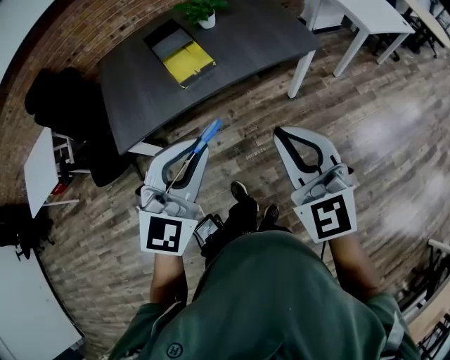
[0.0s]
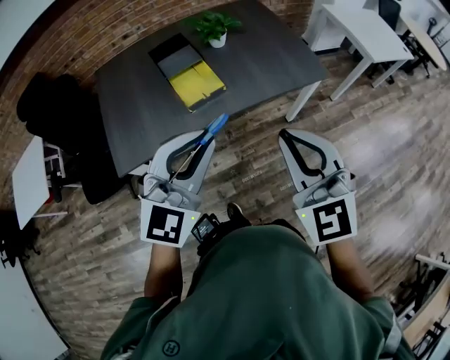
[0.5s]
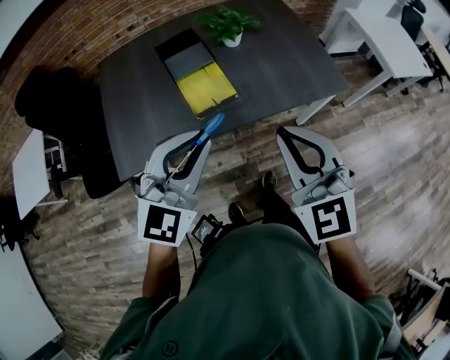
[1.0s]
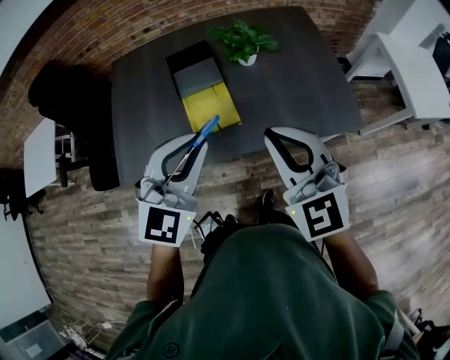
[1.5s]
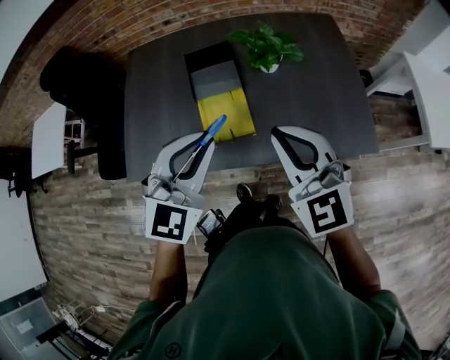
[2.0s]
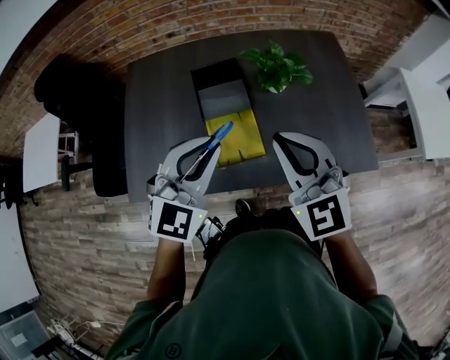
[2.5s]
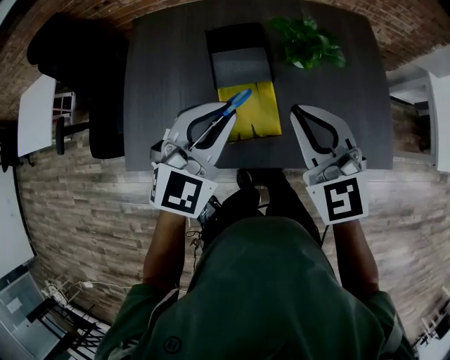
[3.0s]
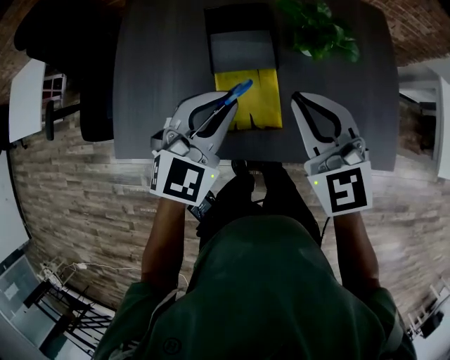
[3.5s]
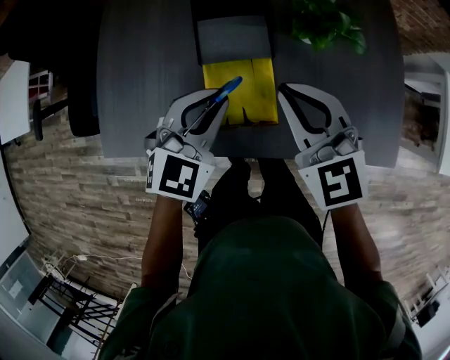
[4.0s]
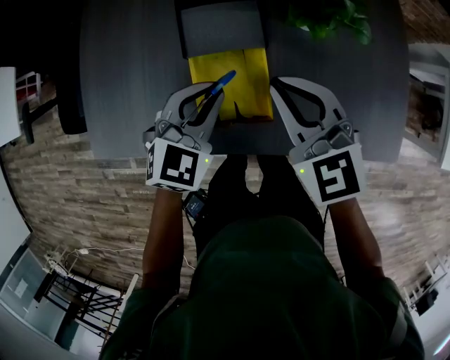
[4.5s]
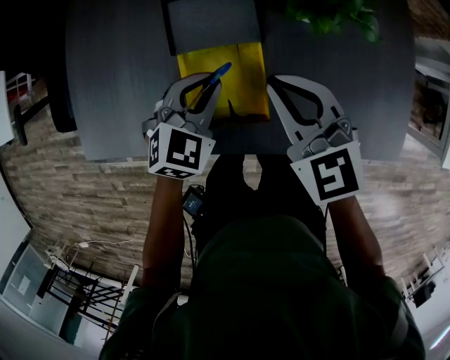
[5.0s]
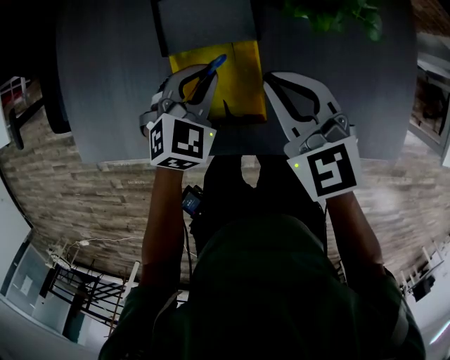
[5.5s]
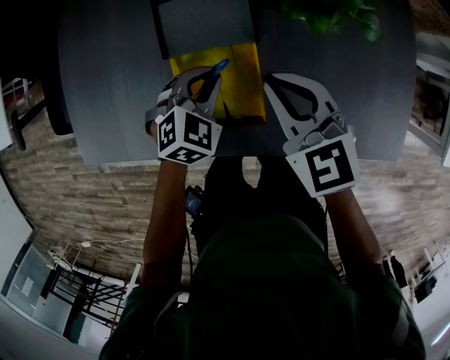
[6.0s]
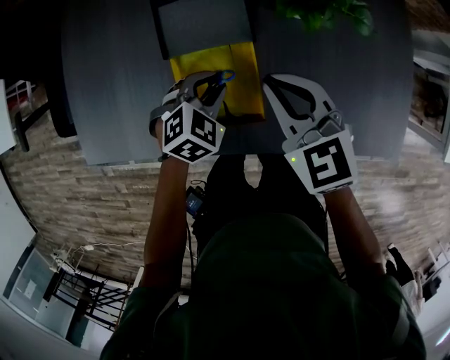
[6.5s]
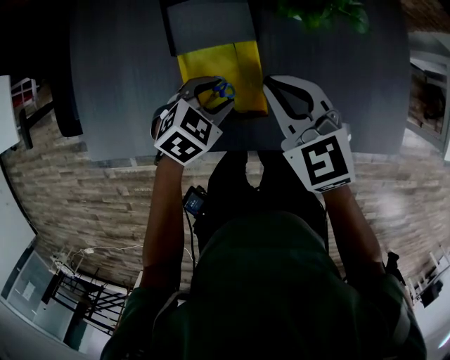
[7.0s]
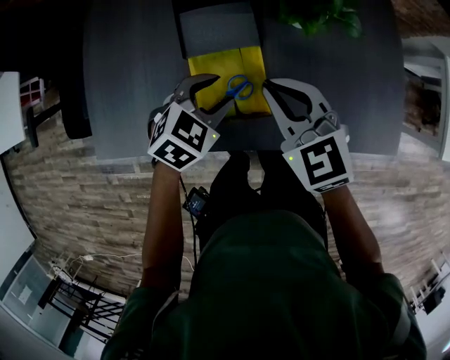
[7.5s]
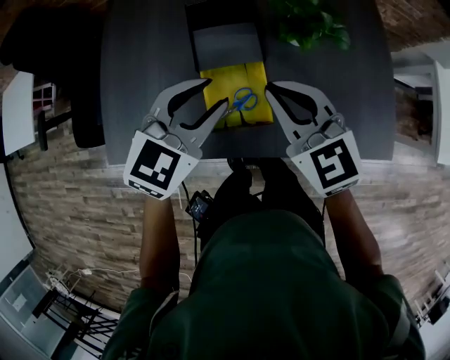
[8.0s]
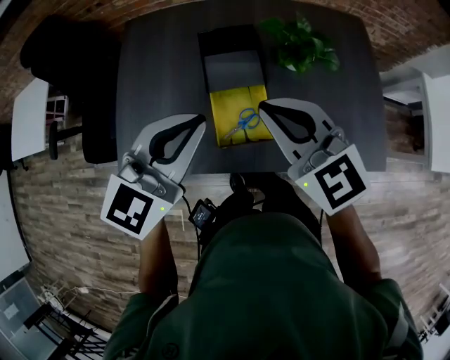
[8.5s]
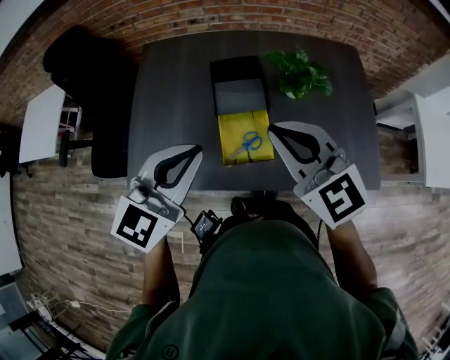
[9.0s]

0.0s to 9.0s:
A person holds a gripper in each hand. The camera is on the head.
0.0s to 2.0s: The grippers both shift forward by approximately 35 cm. The left gripper rotates some 20 degrees. Meanwhile the right gripper changes its angle by about 20 degrees.
2.0s to 4.5s: The right gripper goes approximately 25 cm forward and downward; the left gripper is displaced downward and forward by roughly 25 cm, and swivels roughly 20 degrees.
4.5s to 7.0s: The left gripper travels downward by about 10 cm, changes its angle by roughly 30 degrees, and opens; the right gripper moves roughly 5 cm.
7.0s to 9.0s: The grippers both shift upward by some 30 cm. The left gripper tips its fingers upward by about 40 degrees, and closes, while the right gripper turns by some 20 degrees.

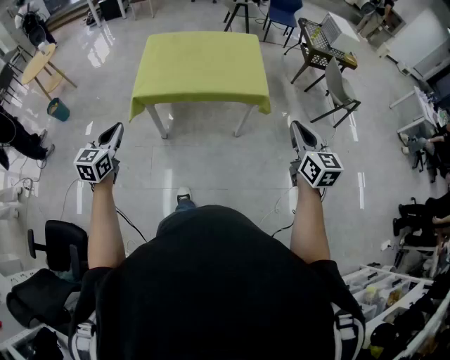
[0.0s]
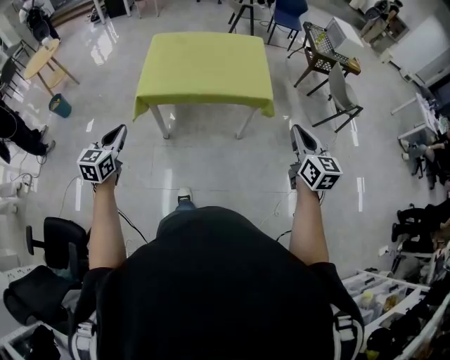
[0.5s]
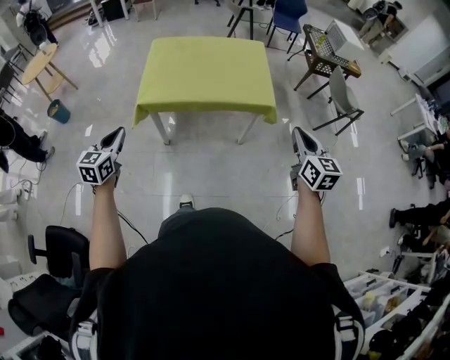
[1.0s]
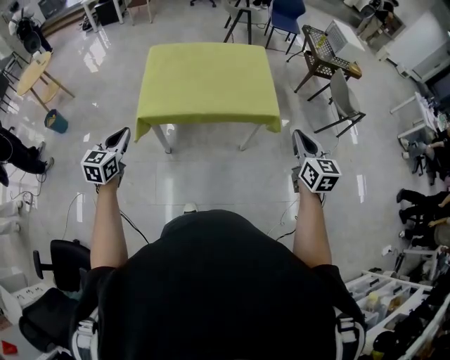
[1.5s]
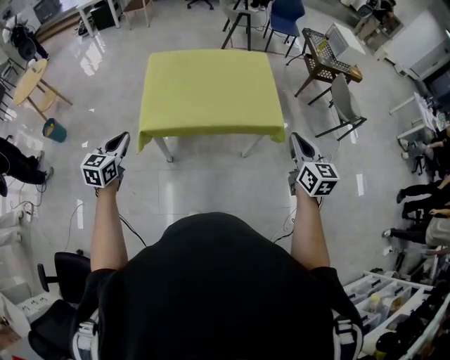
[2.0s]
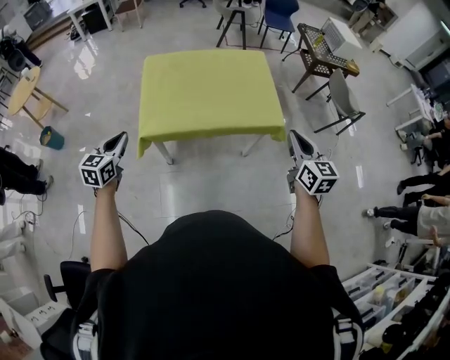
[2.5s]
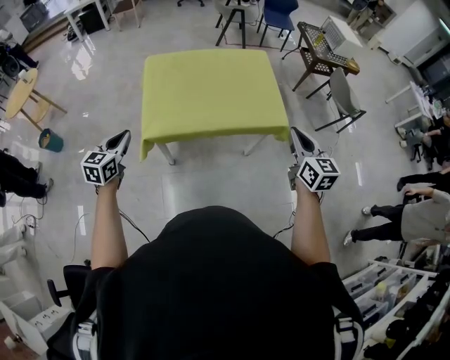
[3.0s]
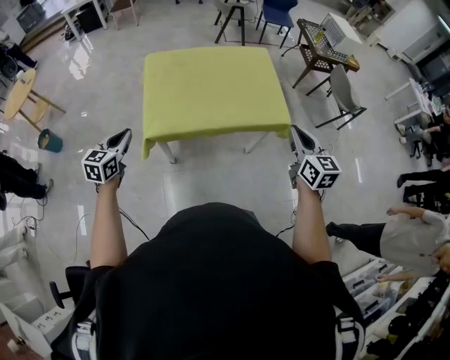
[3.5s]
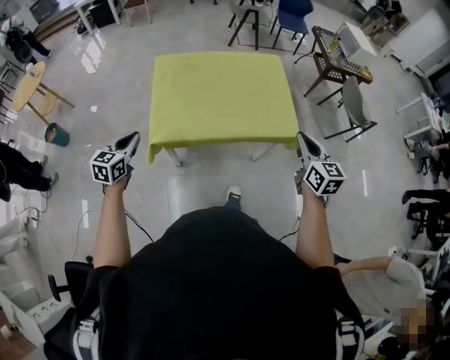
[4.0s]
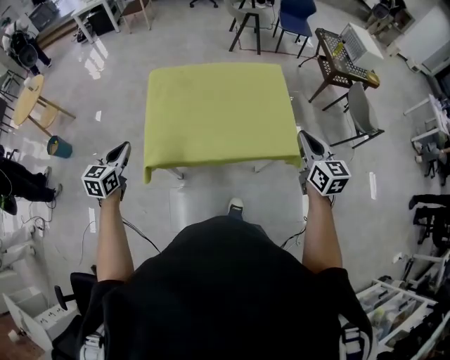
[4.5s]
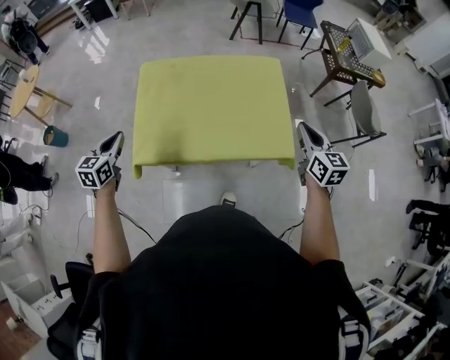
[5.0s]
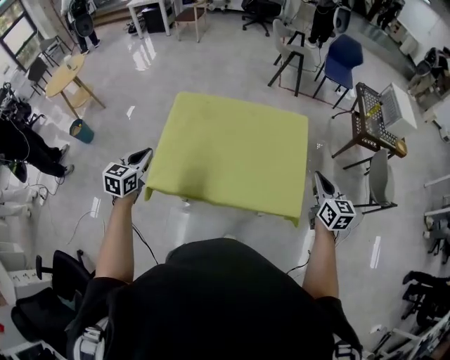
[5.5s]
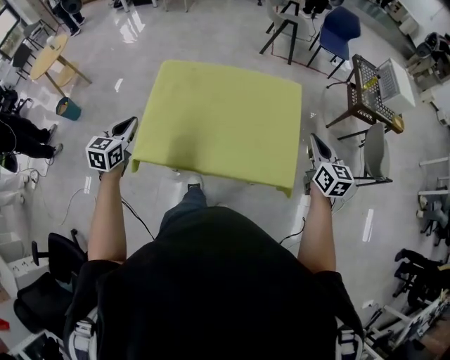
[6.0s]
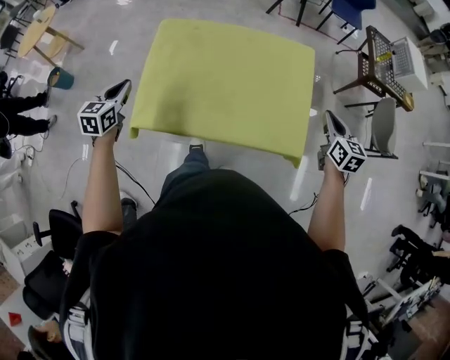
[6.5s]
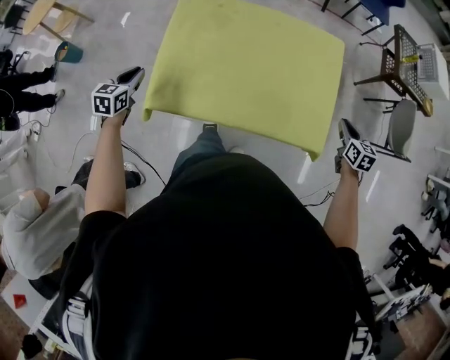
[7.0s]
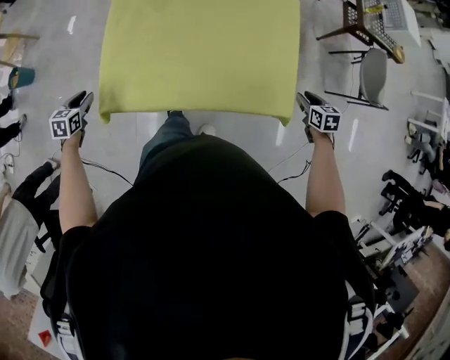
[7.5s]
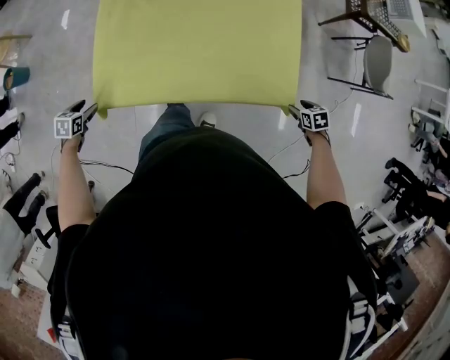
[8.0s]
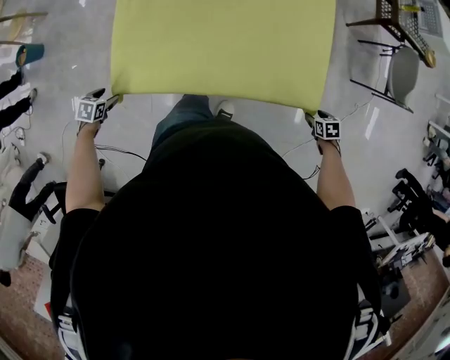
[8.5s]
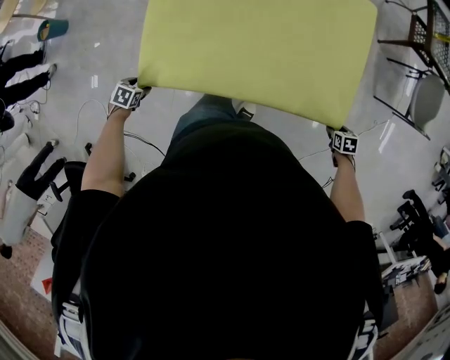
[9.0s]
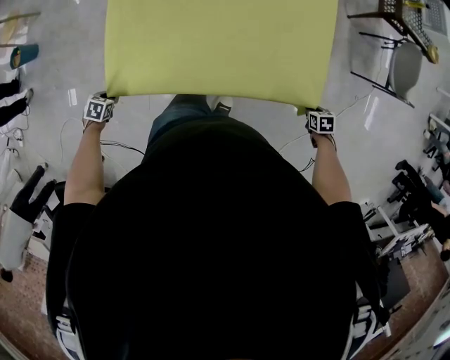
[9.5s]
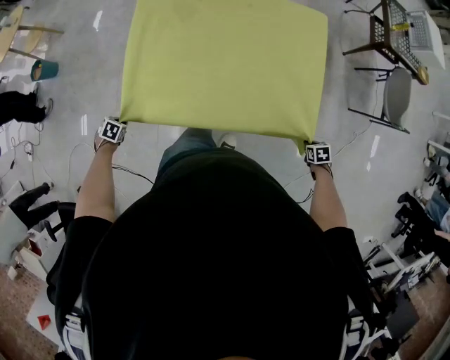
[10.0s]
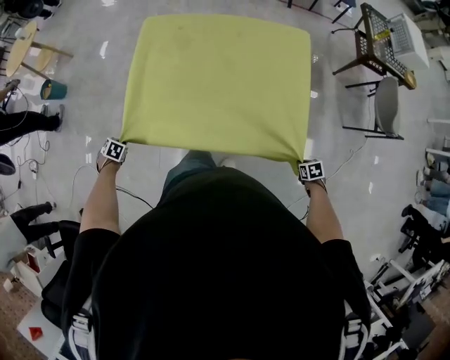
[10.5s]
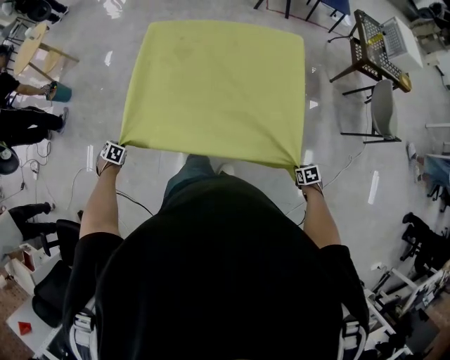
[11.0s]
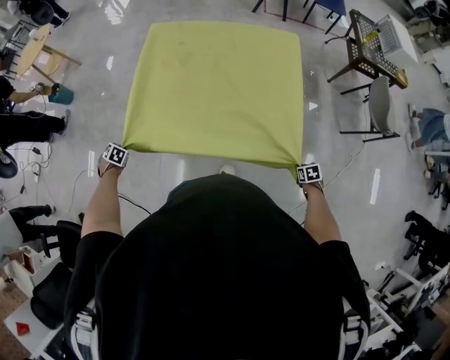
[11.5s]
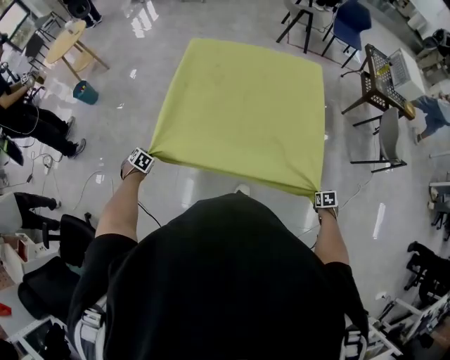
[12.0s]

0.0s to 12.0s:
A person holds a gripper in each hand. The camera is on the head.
0.0s to 2.0s: Both grippers move forward and to the left, some 25 cm.
2.0s to 4.0s: The two grippers go some 15 cm forward and to the left.
4.0s to 6.0s: The grippers both shift forward and to the right by about 30 cm.
6.0s to 8.0s: The two grippers go roughly 35 cm downward. The left gripper tilts its fingers about 40 degrees downward, and opens. The right gripper tips its fingers downward by roughly 60 degrees, and opens its fingers.
8.0s to 10.0s: The grippers both shift downward by some 5 cm. The right gripper closes, while the left gripper turns by about 20 degrees, and closes.
10.0s to 12.0s: The right gripper changes place by some 25 cm, while the left gripper ends up some 25 cm from where it was.

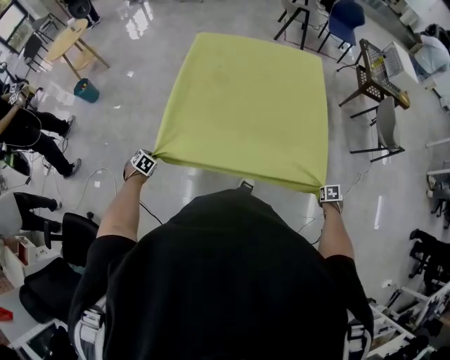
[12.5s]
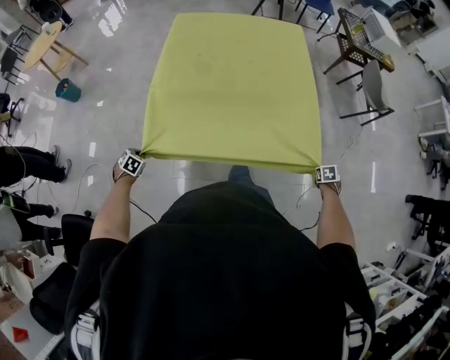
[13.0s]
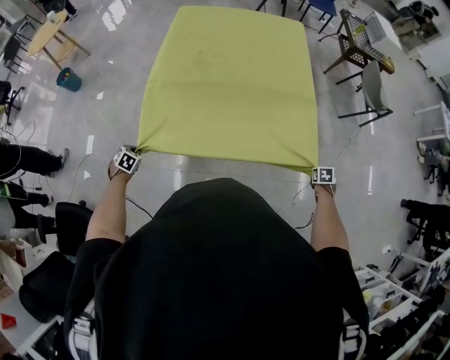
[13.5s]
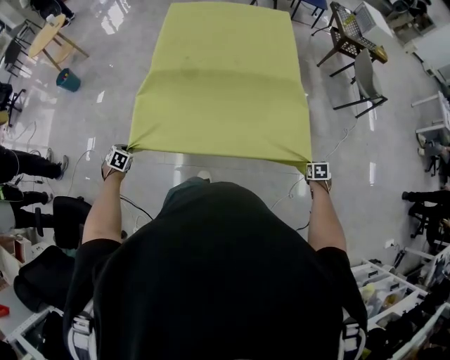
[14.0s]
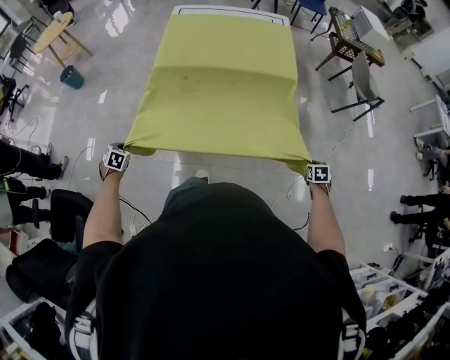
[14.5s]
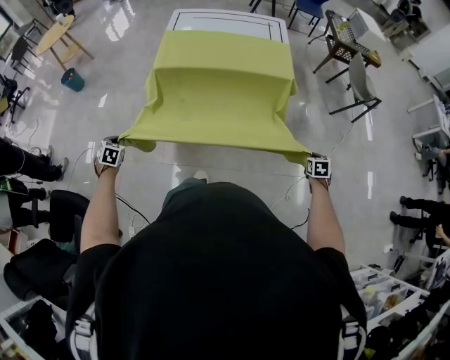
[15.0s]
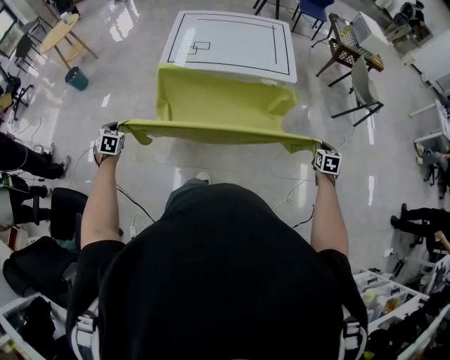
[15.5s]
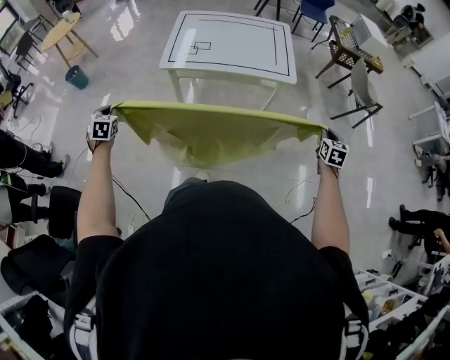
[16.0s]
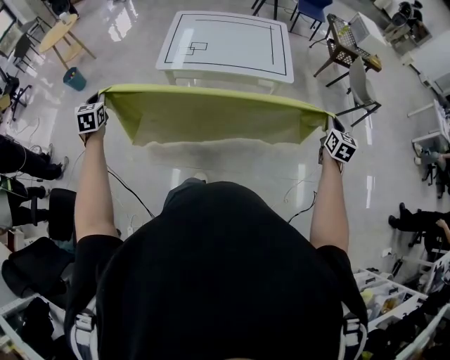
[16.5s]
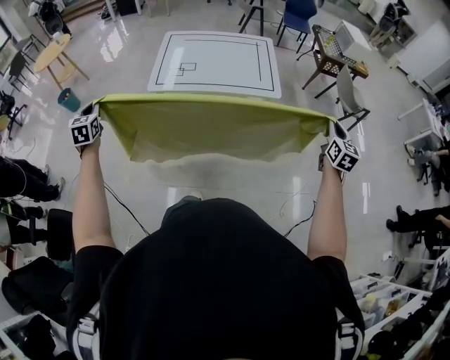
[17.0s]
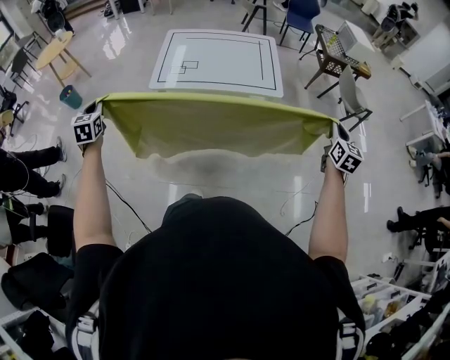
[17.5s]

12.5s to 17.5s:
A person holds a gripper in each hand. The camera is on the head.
12.5s to 15.0s: The right gripper shifts by approximately 30 cm, and turns by approximately 20 degrees. The left gripper changes place by some 30 cm.
15.0s to 17.5s: The right gripper moves upward, some 30 cm, and tilts its fingers some 40 degrees upward; the left gripper shifts some 30 cm upward and forward, and tips its fingers upward by about 30 degrees.

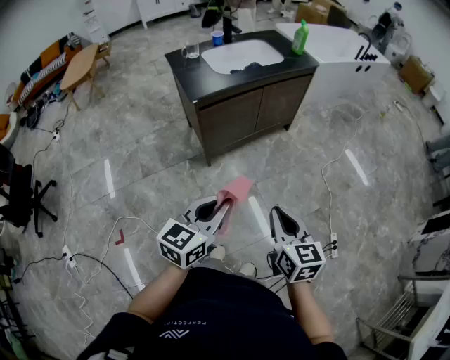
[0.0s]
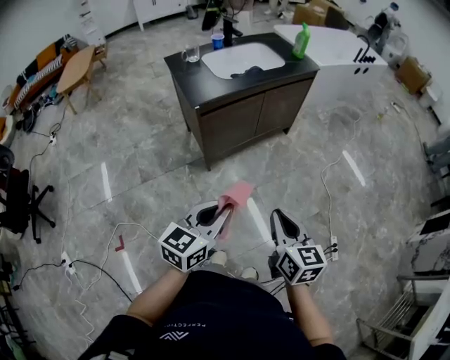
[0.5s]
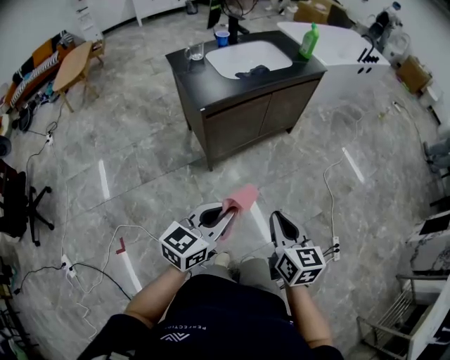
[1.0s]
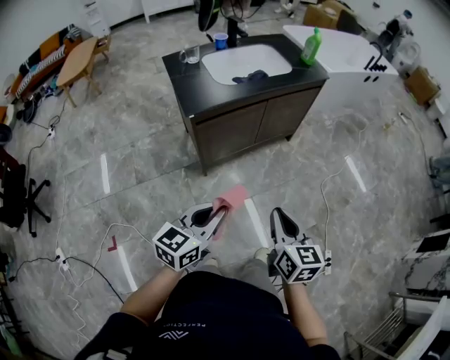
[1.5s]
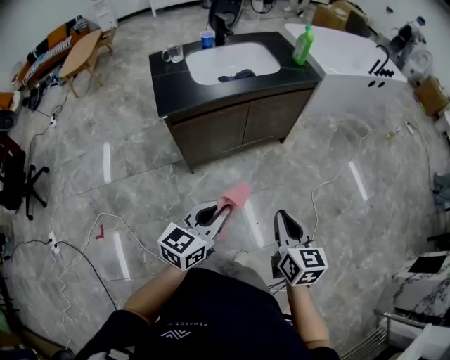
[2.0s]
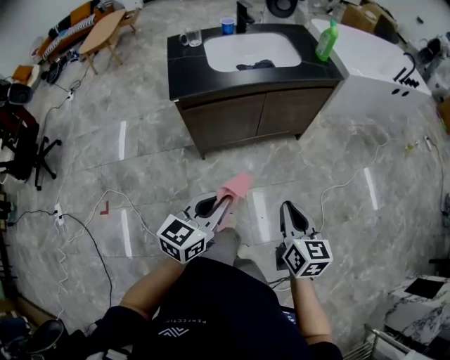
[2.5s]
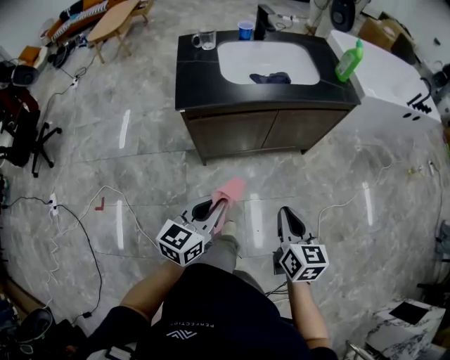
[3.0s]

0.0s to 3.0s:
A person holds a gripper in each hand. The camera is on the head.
0.0s to 1.5s: Both grippers move forward, about 10 cm.
1.5s to 3.0s: Both grippers move forward and to the right, about 20 cm. The left gripper rotates approximately 20 degrees.
